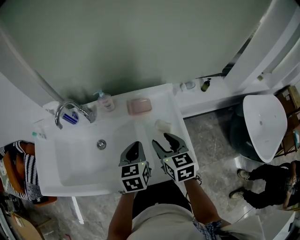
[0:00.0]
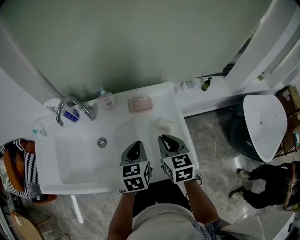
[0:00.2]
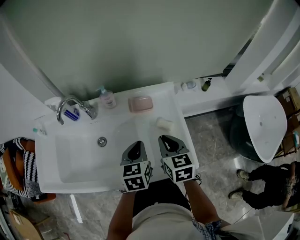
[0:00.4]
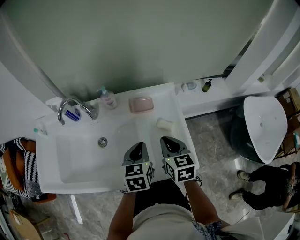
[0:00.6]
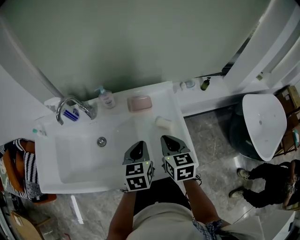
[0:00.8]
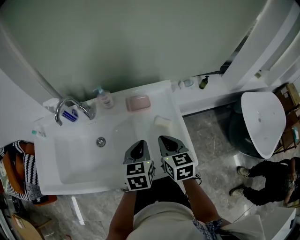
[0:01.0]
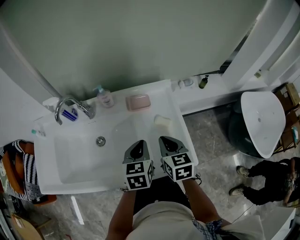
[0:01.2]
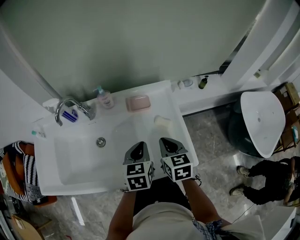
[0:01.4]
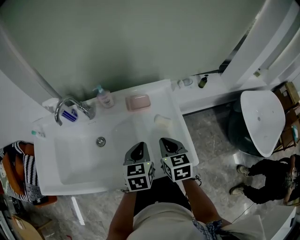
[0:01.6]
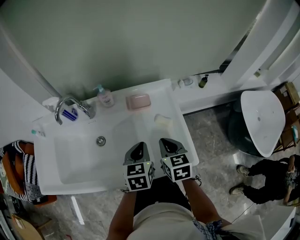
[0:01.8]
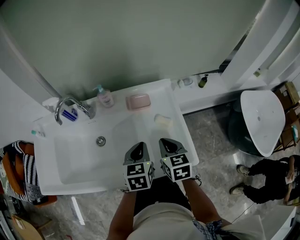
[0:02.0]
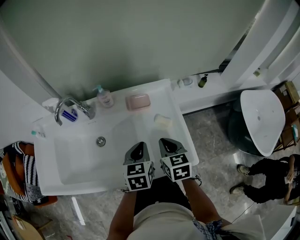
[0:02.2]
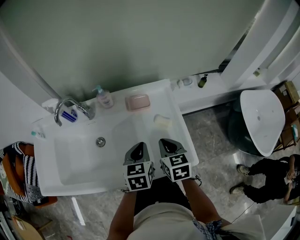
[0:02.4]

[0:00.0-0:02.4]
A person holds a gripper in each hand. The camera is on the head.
0:00.0 to 0:01.2: The right gripper closes.
0:01.2 to 0:02.4: There are only small adjustments of the grippers.

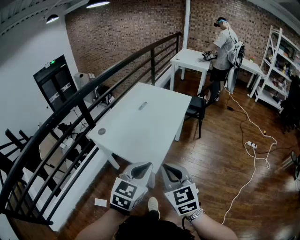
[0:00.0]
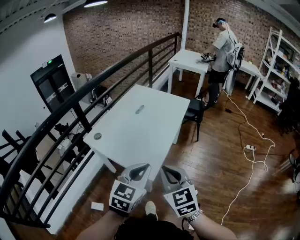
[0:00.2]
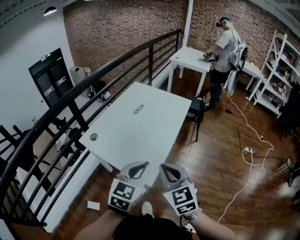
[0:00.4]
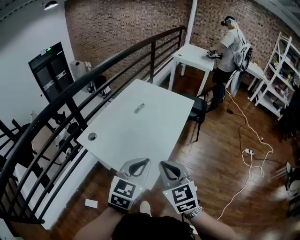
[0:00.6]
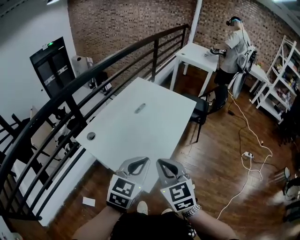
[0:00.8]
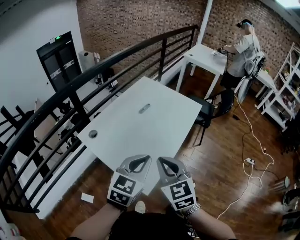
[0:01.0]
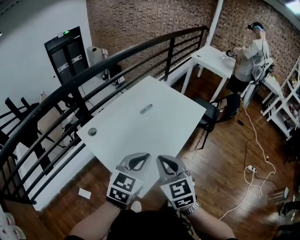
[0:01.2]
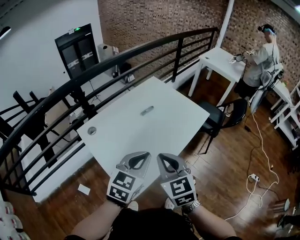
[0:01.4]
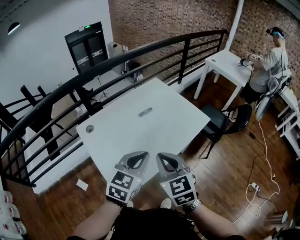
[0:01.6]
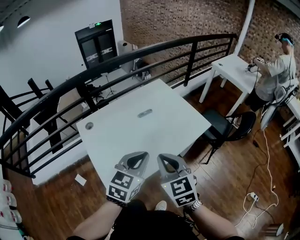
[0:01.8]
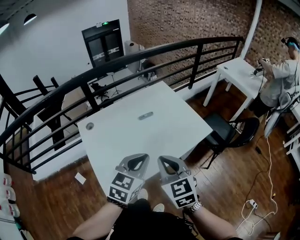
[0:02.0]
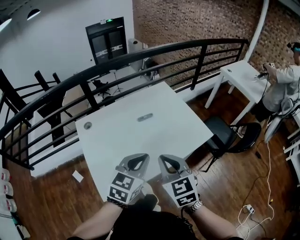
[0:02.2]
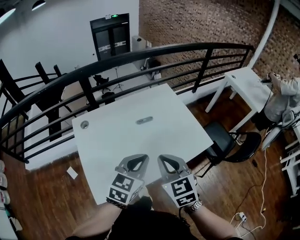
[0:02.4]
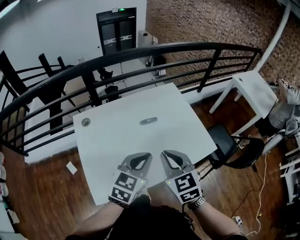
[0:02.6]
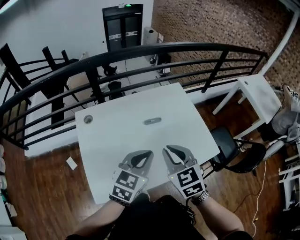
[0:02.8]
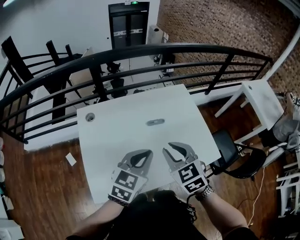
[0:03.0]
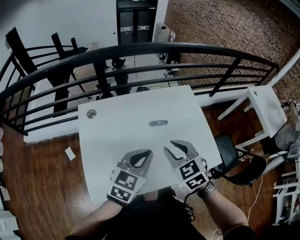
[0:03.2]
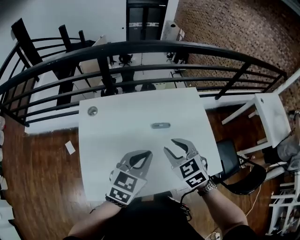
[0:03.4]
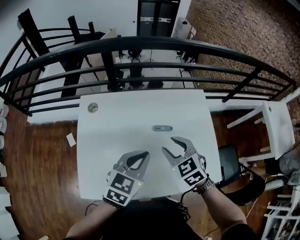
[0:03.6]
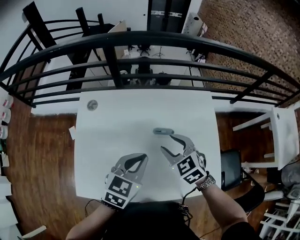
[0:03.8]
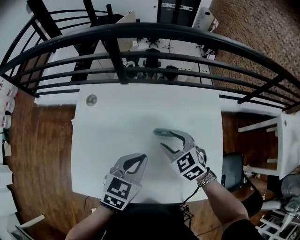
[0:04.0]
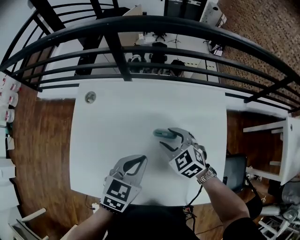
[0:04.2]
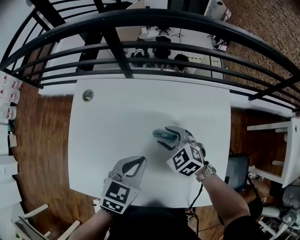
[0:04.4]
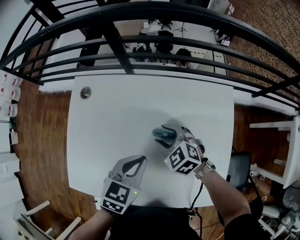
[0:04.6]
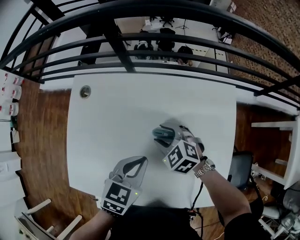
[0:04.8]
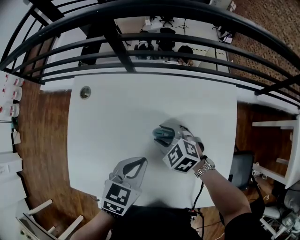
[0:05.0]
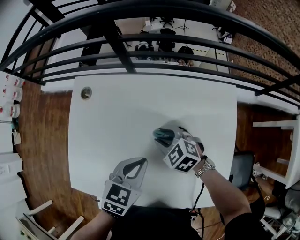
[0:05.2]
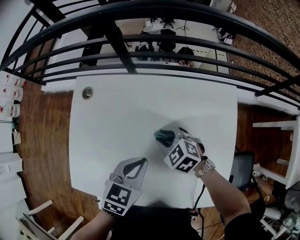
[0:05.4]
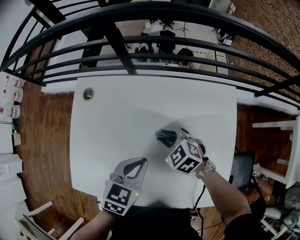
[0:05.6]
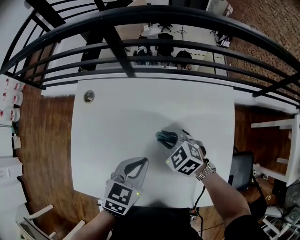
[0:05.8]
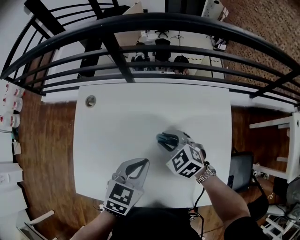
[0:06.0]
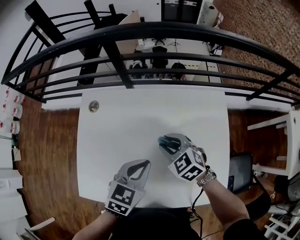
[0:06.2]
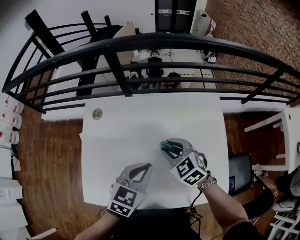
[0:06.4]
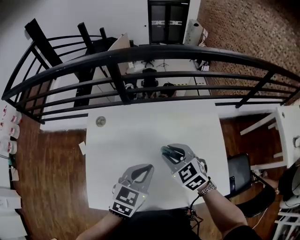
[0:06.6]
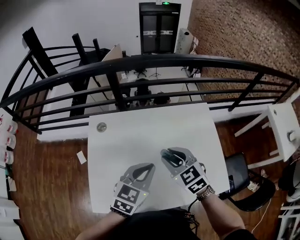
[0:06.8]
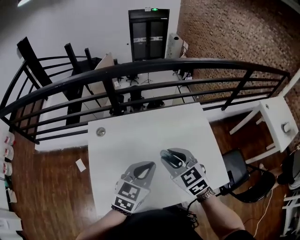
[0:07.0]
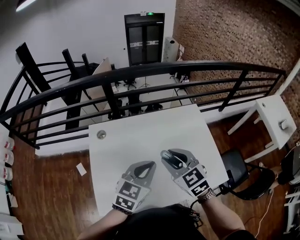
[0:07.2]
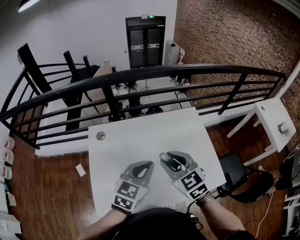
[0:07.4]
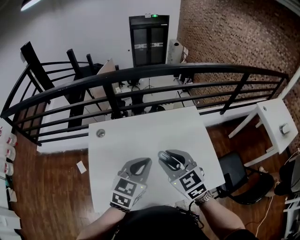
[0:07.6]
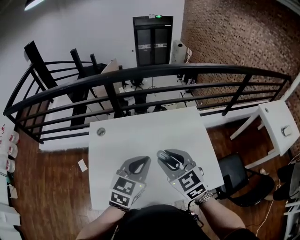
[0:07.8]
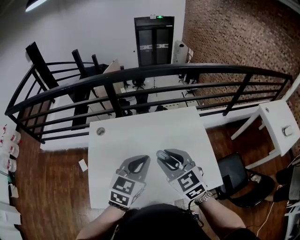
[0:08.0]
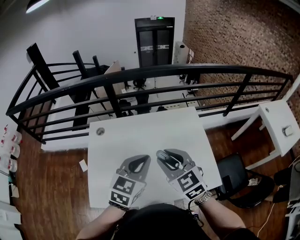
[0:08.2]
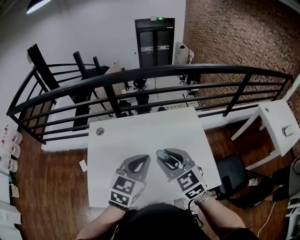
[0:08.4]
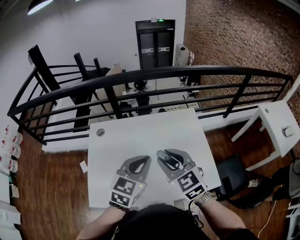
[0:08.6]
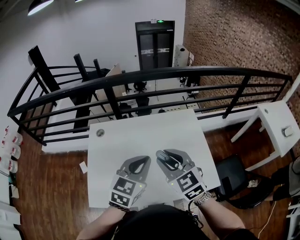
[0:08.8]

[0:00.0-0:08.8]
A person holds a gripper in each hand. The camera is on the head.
0:00.0 to 0:01.4: The two grippers go roughly 30 cm forward.
0:01.4 to 0:03.0: The right gripper shifts by about 25 cm, and changes its angle by some 40 degrees. The left gripper changes place by some 20 cm, and turns by about 30 degrees.
0:03.0 to 0:04.4: The right gripper ends up roughly 30 cm from where it was, rotates about 40 degrees, and opens. Meanwhile the left gripper changes place by approximately 20 cm, and changes its angle by some 30 degrees.
0:04.4 to 0:05.8: The right gripper closes.
0:05.8 to 0:07.4: The right gripper moves upward and backward, about 25 cm, and rotates approximately 40 degrees; the left gripper heads upward and backward, covering about 15 cm, and changes its angle by about 30 degrees.
0:07.4 to 0:08.8: The left gripper moves about 5 cm, while the right gripper ends up roughly 5 cm from where it was.

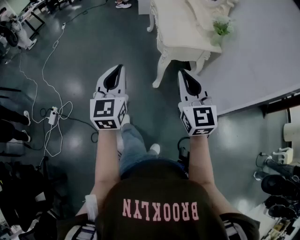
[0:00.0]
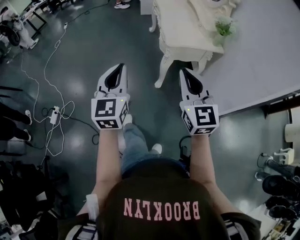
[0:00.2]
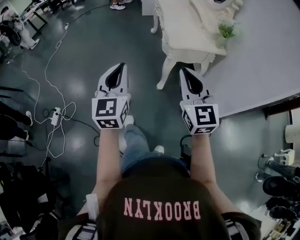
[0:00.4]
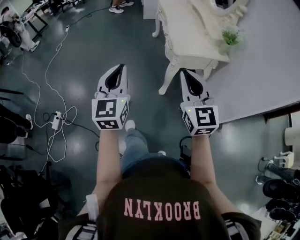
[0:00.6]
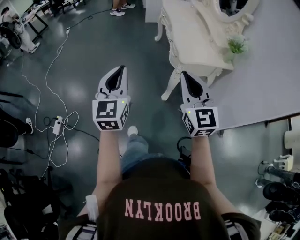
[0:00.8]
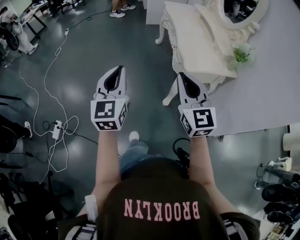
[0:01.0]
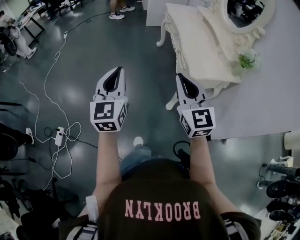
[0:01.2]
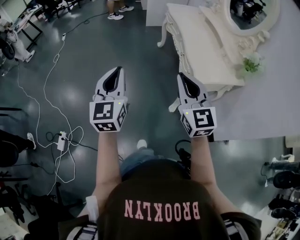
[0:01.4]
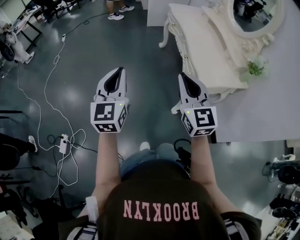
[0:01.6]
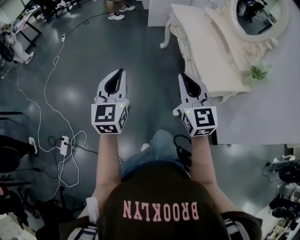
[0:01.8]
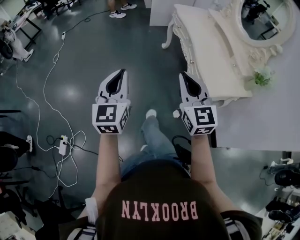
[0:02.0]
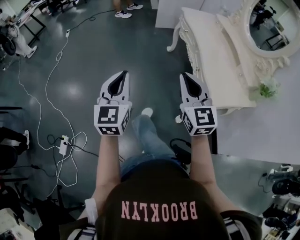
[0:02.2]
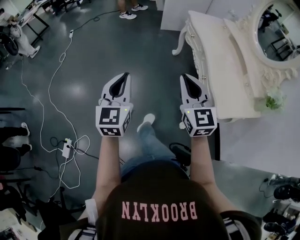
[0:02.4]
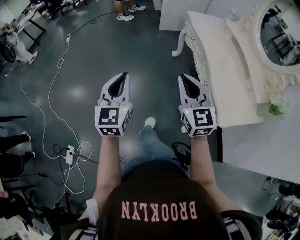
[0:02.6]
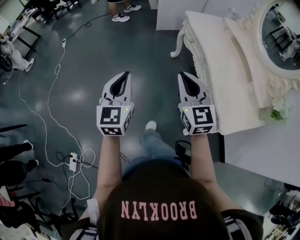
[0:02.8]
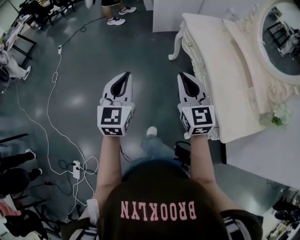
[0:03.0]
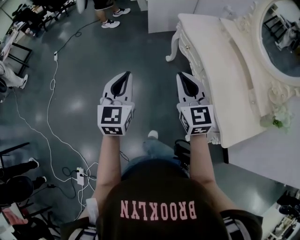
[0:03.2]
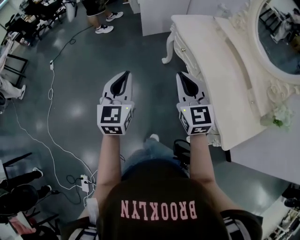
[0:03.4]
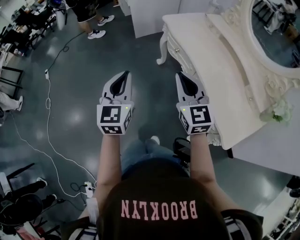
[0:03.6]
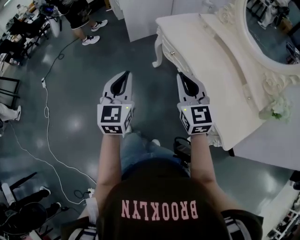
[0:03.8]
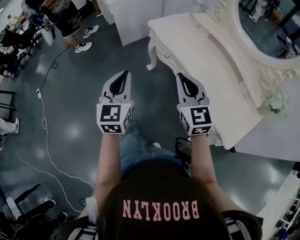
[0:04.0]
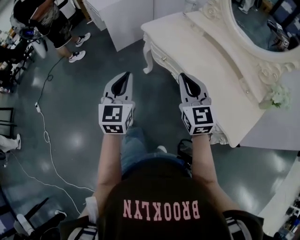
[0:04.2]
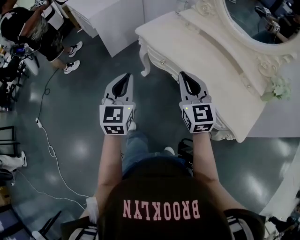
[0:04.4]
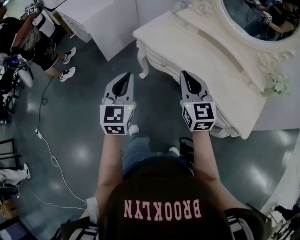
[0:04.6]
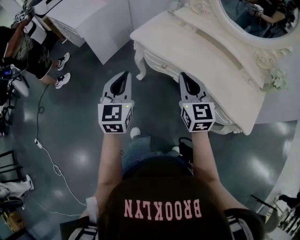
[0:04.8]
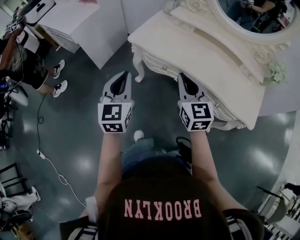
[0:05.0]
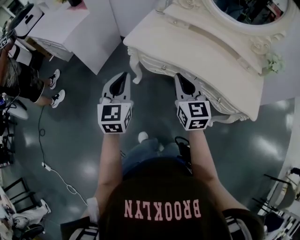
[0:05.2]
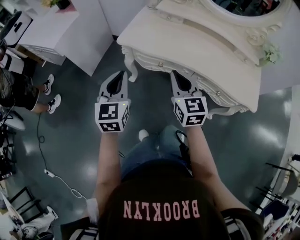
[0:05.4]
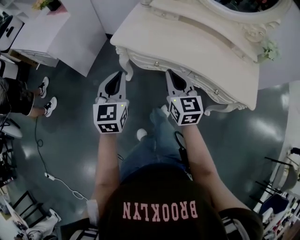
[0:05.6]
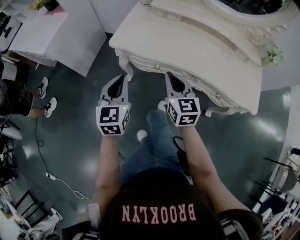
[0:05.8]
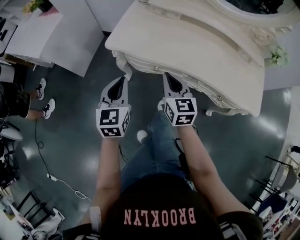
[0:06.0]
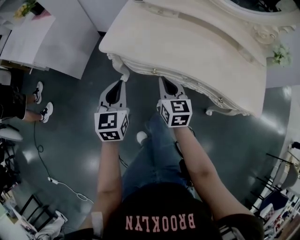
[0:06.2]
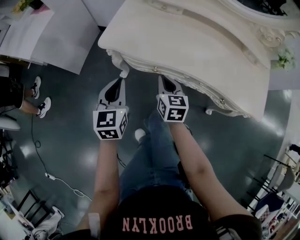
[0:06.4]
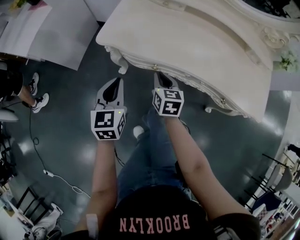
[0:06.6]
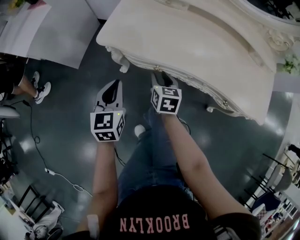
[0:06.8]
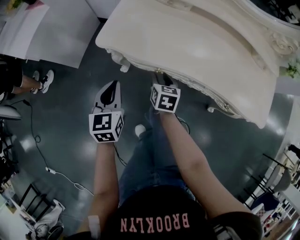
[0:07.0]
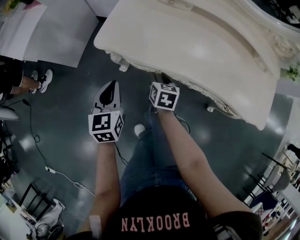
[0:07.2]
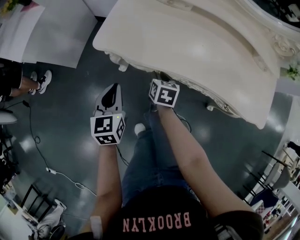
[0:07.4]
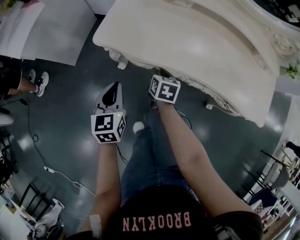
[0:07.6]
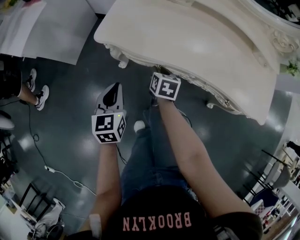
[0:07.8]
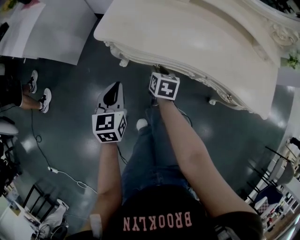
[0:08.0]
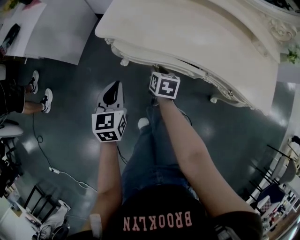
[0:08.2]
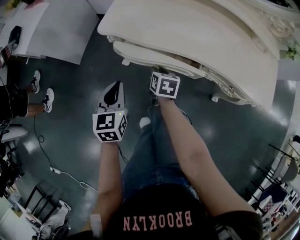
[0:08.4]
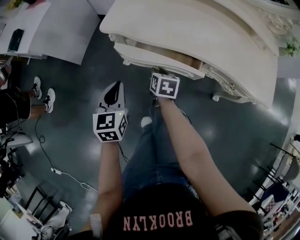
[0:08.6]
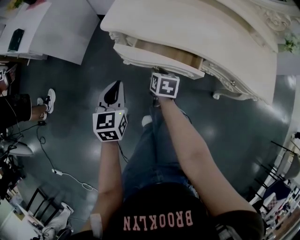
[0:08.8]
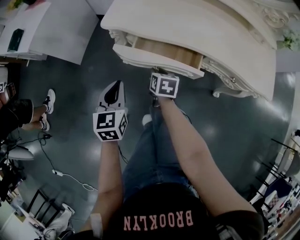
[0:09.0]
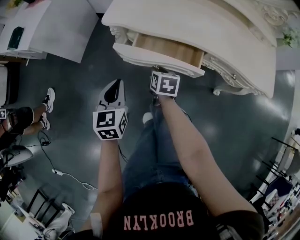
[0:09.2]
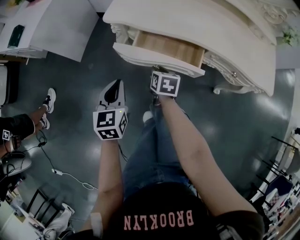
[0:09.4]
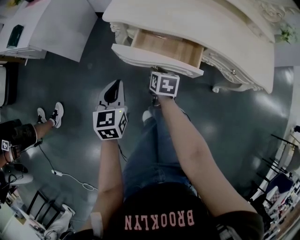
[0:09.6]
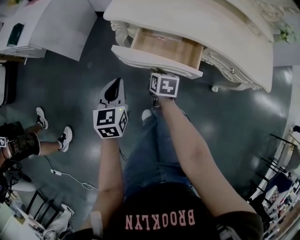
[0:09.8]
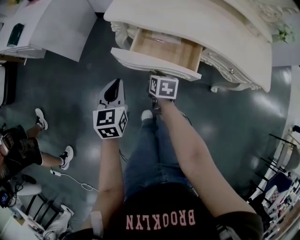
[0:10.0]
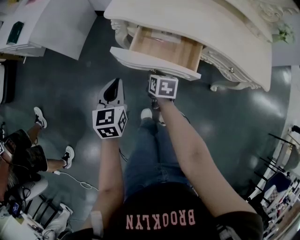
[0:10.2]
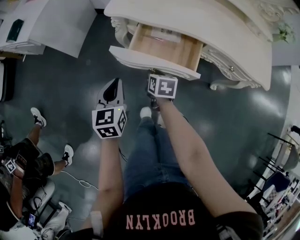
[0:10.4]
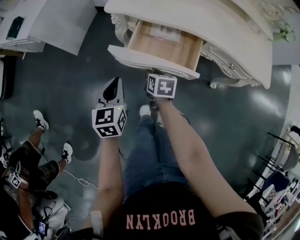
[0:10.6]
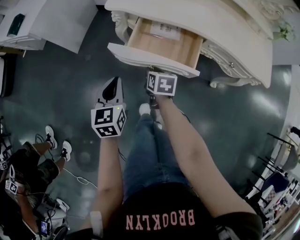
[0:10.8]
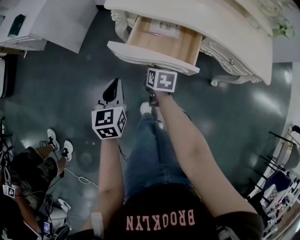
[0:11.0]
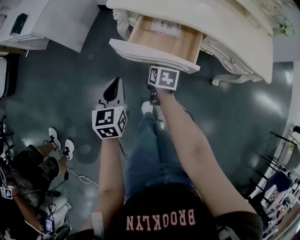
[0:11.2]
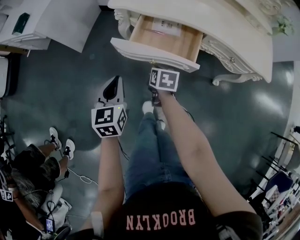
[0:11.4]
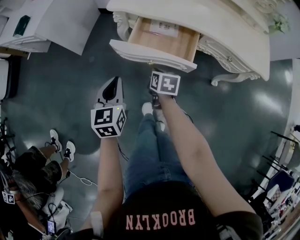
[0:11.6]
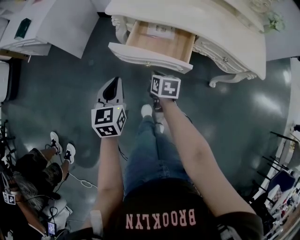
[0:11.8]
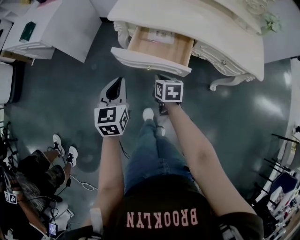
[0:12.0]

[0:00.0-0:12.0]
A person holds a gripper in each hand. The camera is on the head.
0:00.0 to 0:01.6: Both grippers move forward and to the left, approximately 35 cm.
0:01.6 to 0:03.0: Both grippers move forward, some 40 cm.
0:03.0 to 0:04.4: The right gripper ends up some 25 cm from where it was, and rotates approximately 30 degrees, while the left gripper ends up roughly 30 cm from where it was, and swivels roughly 30 degrees.
0:04.4 to 0:06.0: The right gripper shifts by about 25 cm, and turns by approximately 40 degrees. Meanwhile the left gripper ends up some 25 cm from where it was, and swivels approximately 30 degrees.
0:06.0 to 0:07.6: The right gripper shifts roughly 20 cm downward, tips its fingers downward by about 30 degrees, and opens up. The left gripper travels downward by some 10 cm.
0:07.6 to 0:09.0: Both grippers move backward, approximately 10 cm.
0:09.0 to 0:10.4: Both grippers travel together backward, approximately 5 cm.
0:10.4 to 0:12.0: The right gripper shifts approximately 10 cm backward and upward, and closes, while the left gripper heads upward and backward, covering roughly 10 cm.
